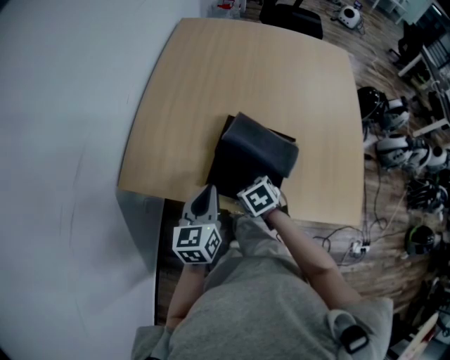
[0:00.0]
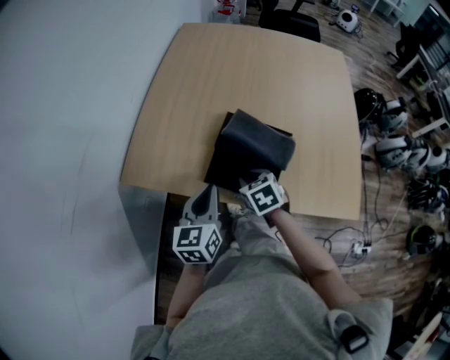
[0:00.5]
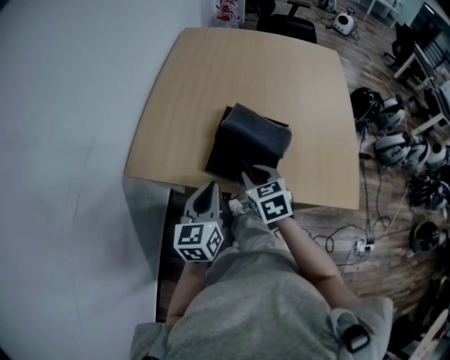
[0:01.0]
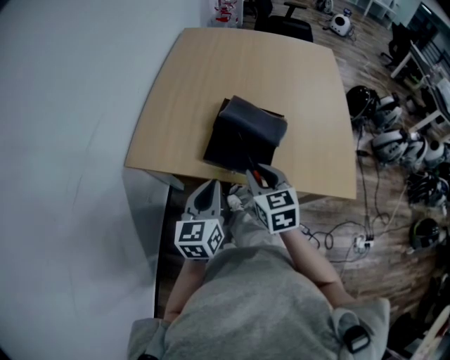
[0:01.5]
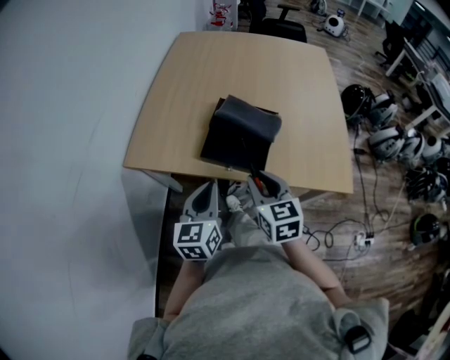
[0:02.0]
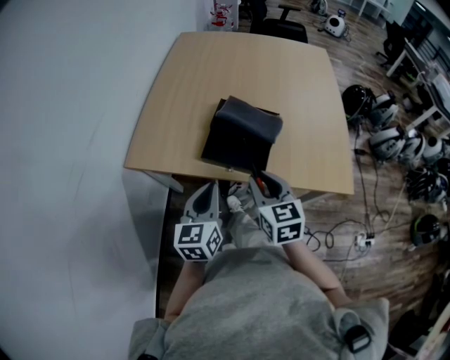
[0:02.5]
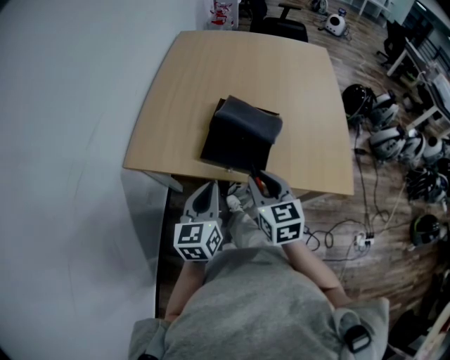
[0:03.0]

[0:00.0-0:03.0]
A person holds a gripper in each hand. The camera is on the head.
0:00.0 to 0:01.5: The right gripper goes some 20 cm upward and backward, and points its fingers about 30 degrees further upward. Meanwhile the left gripper is displaced backward by approximately 10 cm.
0:01.5 to 0:03.0: The grippers stay close to where they were, moving slightly.

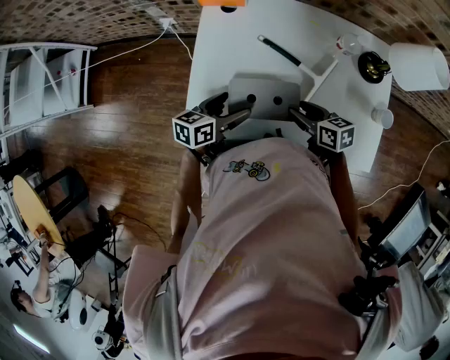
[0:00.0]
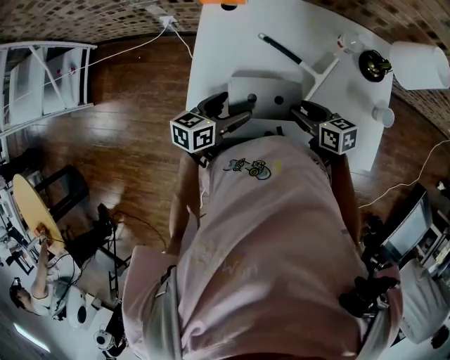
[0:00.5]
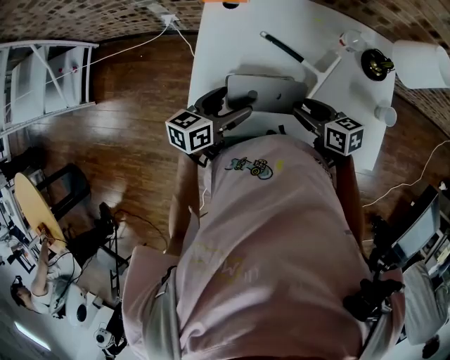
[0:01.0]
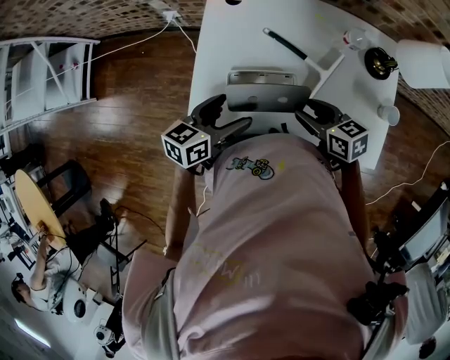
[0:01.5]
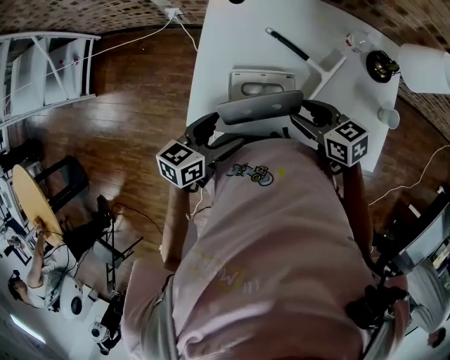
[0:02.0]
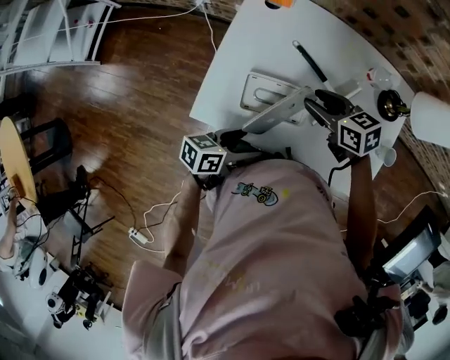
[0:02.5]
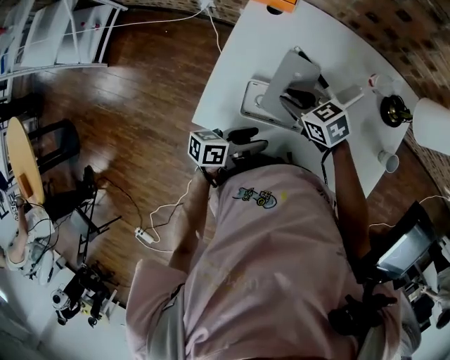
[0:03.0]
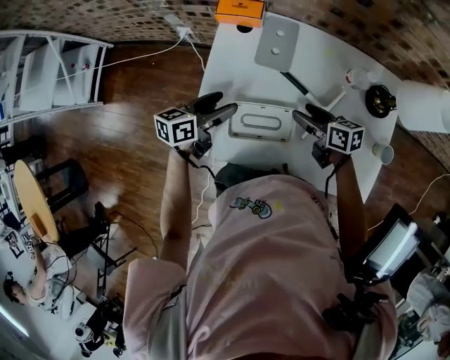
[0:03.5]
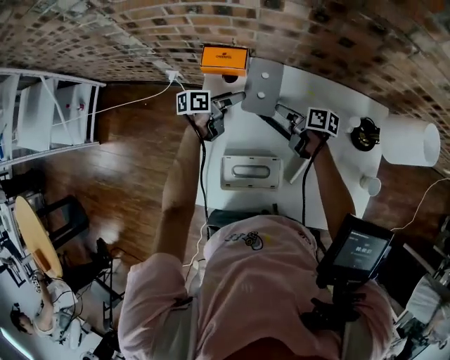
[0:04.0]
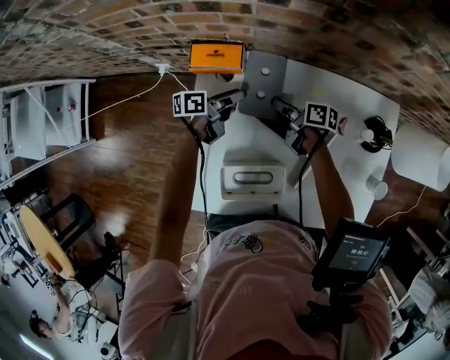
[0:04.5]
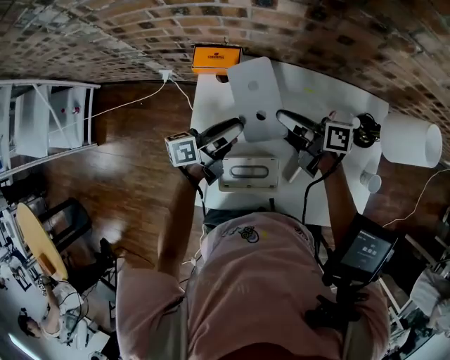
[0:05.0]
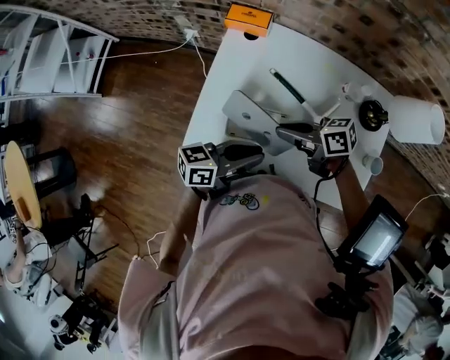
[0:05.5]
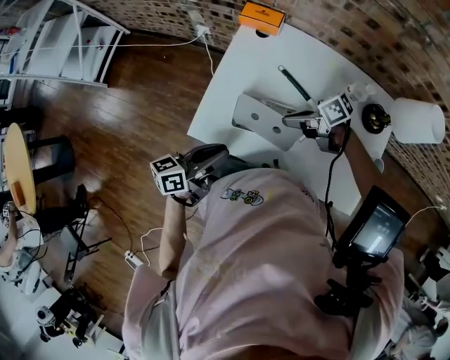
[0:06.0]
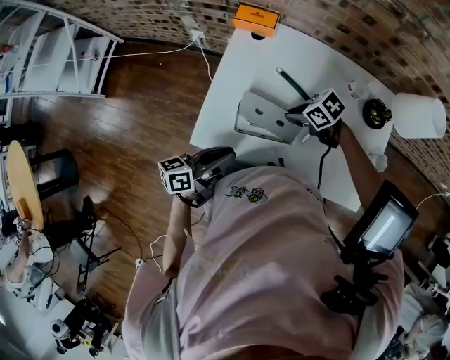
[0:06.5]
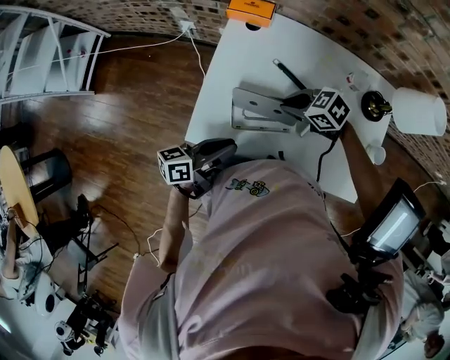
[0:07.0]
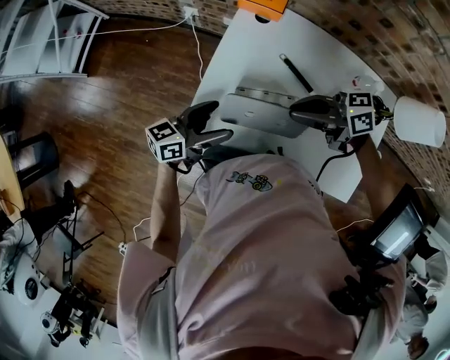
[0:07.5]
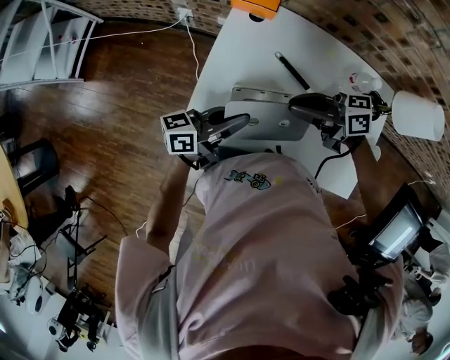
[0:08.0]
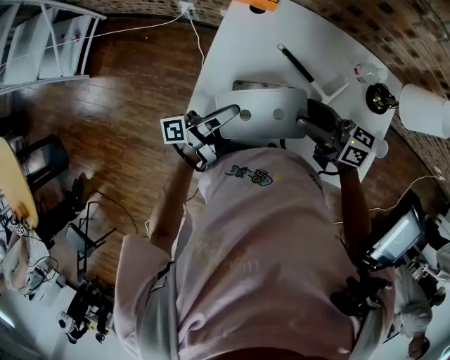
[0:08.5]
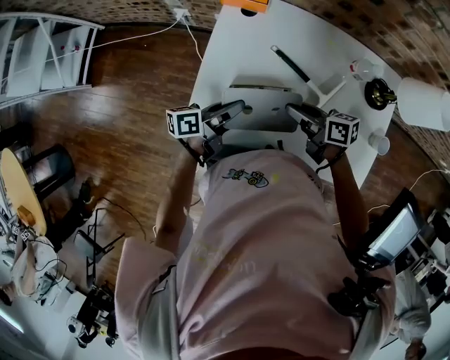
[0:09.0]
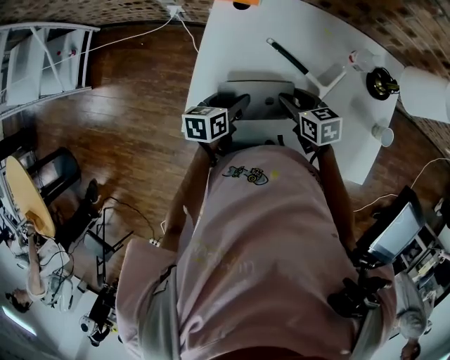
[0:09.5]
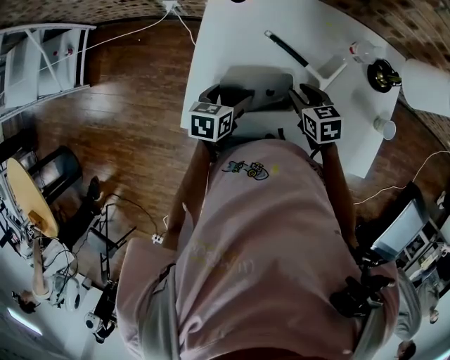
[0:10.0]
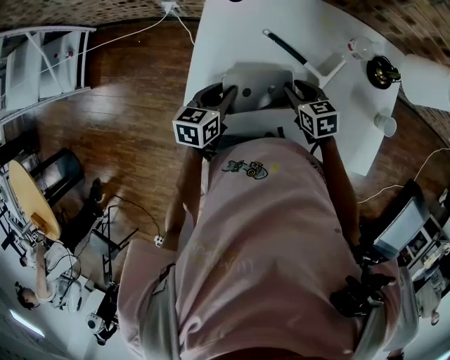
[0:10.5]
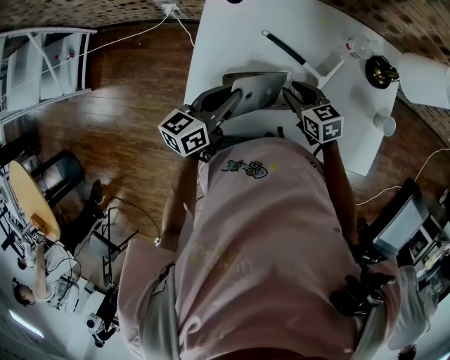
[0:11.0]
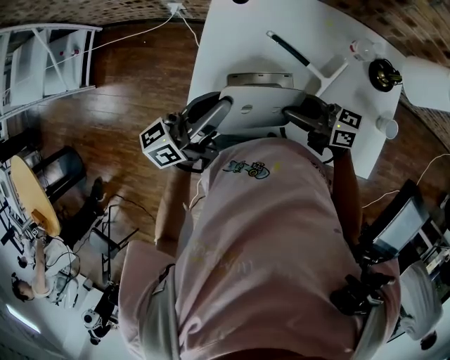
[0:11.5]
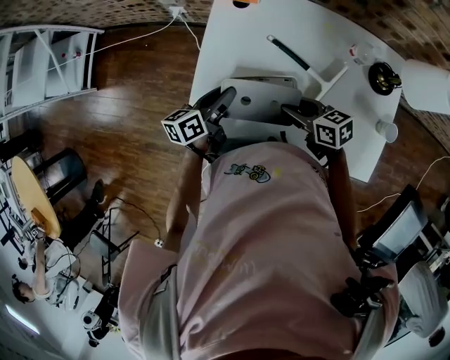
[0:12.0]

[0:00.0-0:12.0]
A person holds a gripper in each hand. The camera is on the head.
0:00.0 to 0:02.0: The right gripper heads upward, covering about 5 cm. The left gripper goes approximately 10 cm backward and upward.
0:02.0 to 0:04.0: The right gripper changes place by approximately 30 cm, and twists approximately 40 degrees clockwise, seen from behind; the left gripper changes place by about 40 cm, and rotates approximately 30 degrees.
0:04.0 to 0:06.0: The left gripper ends up about 40 cm from where it was, swivels about 20 degrees, and closes its fingers. Meanwhile the right gripper shifts by about 25 cm, rotates about 60 degrees, and closes up.
0:06.0 to 0:08.0: The right gripper heads upward, covering roughly 10 cm, and rotates roughly 20 degrees. The left gripper changes place by approximately 10 cm, and opens, then closes once more.
0:08.0 to 0:10.0: The grippers both shift downward by some 15 cm. The left gripper tilts its fingers some 50 degrees downward, and opens. The right gripper points its fingers some 40 degrees further downward.
0:10.0 to 0:12.0: The right gripper reaches about 10 cm upward, then returns, and turns by approximately 30 degrees, while the left gripper reaches roughly 20 cm upward, then returns, swivels some 30 degrees, and closes up.

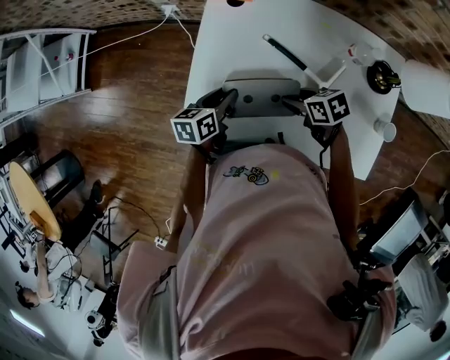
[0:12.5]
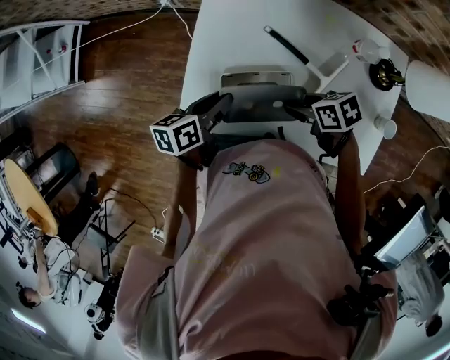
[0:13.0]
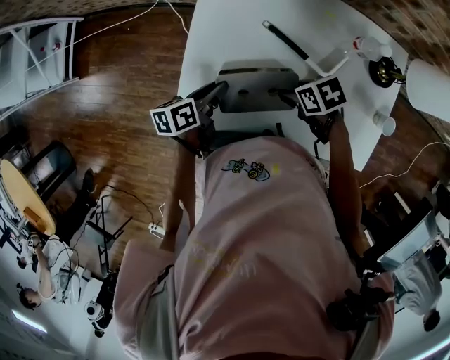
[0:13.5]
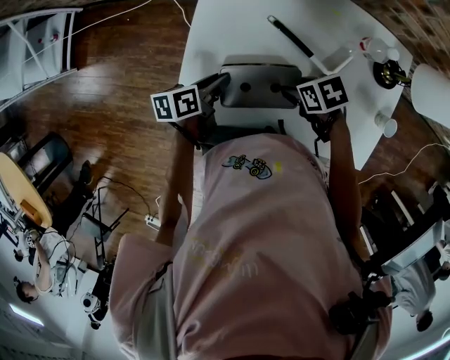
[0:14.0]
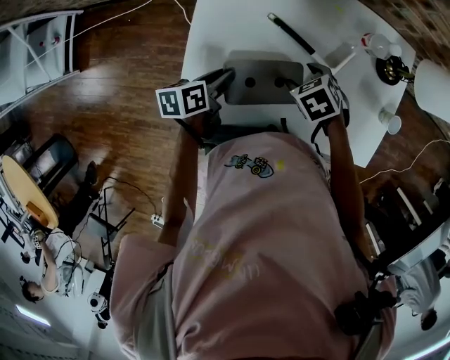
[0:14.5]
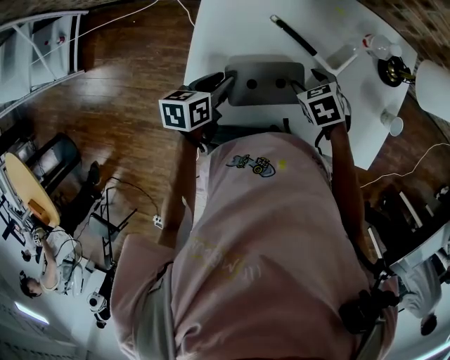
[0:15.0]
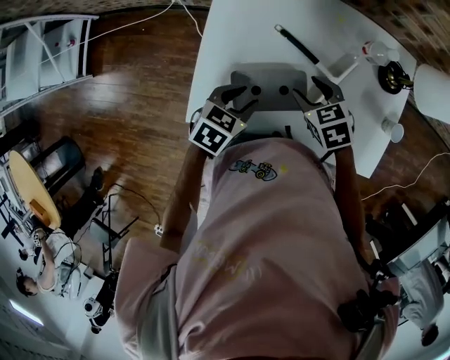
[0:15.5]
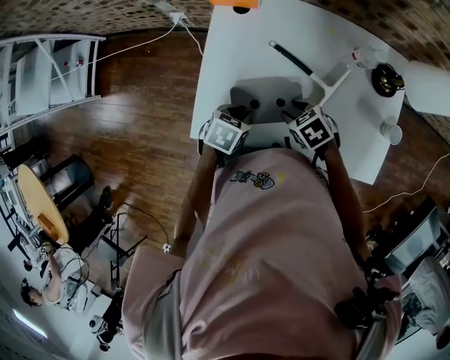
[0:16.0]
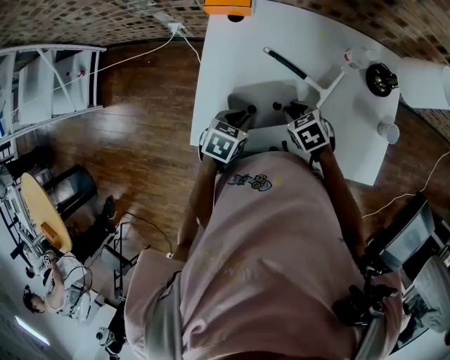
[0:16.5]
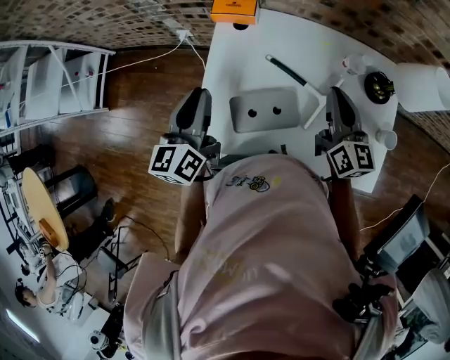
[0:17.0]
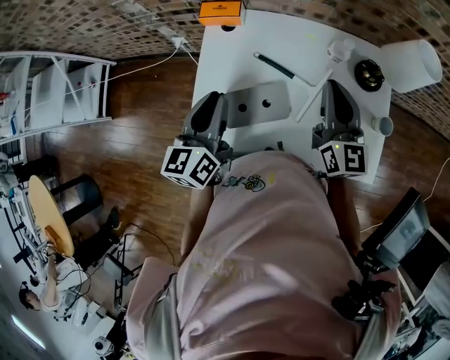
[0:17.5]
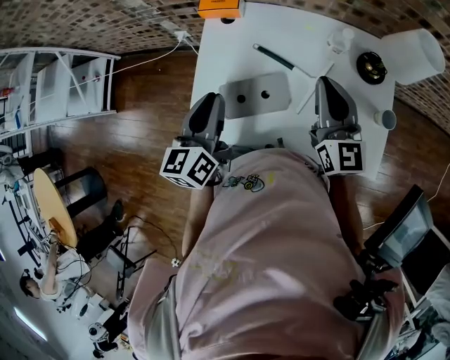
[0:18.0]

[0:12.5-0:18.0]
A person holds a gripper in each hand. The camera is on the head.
0:12.5 to 0:14.5: The right gripper changes its angle by roughly 40 degrees, and opens its fingers.
0:14.5 to 0:16.0: The left gripper moves roughly 5 cm, and turns by about 40 degrees; the right gripper shifts by approximately 5 cm, and closes.
0:16.0 to 0:18.0: The right gripper heads upward and to the right, covering about 25 cm, tips its fingers upward by approximately 70 degrees, and closes up, while the left gripper travels upward by about 25 cm, and points its fingers roughly 50 degrees further upward.

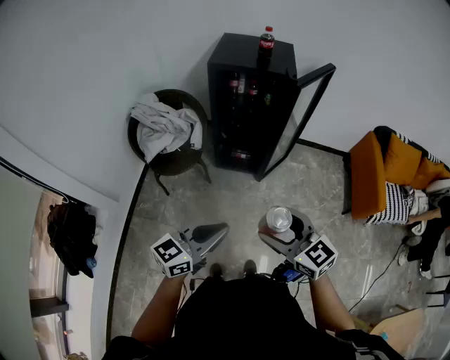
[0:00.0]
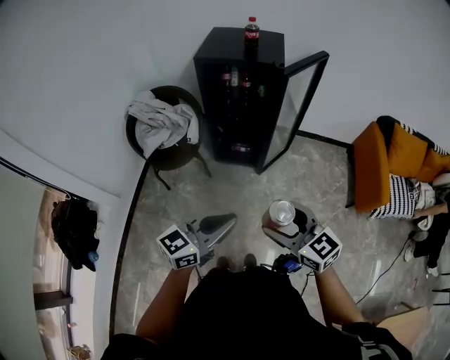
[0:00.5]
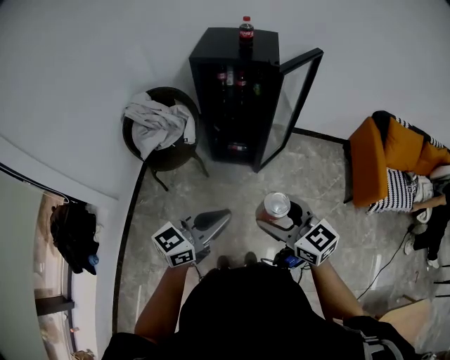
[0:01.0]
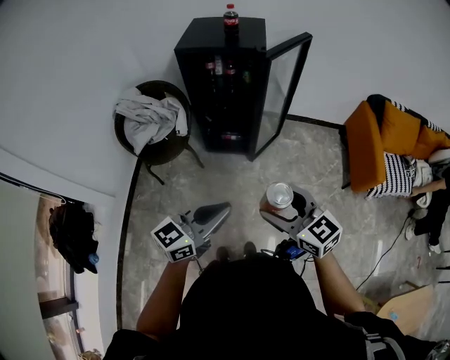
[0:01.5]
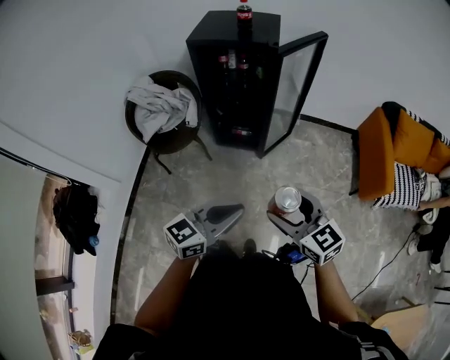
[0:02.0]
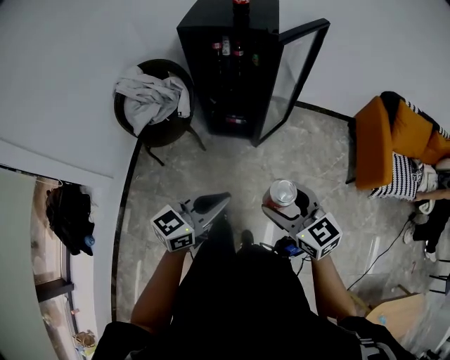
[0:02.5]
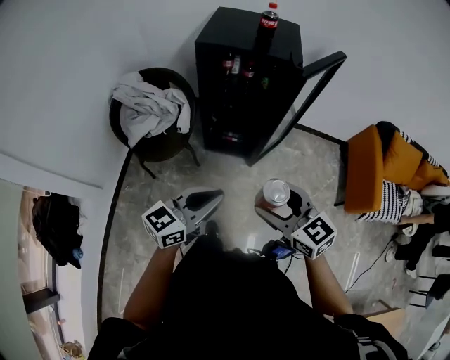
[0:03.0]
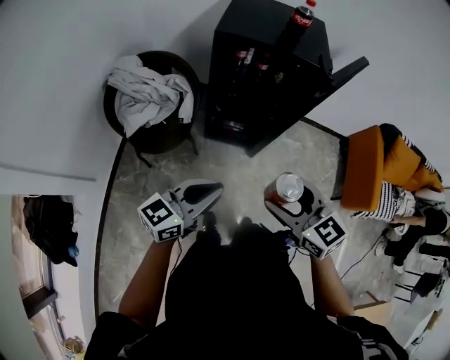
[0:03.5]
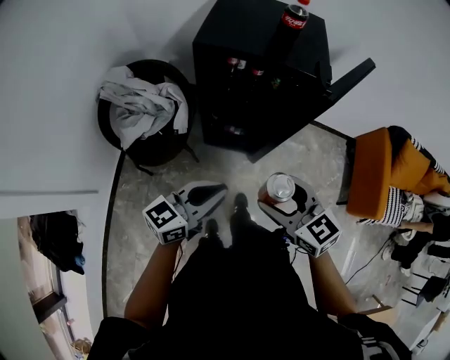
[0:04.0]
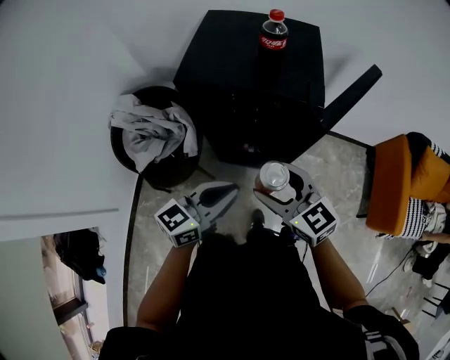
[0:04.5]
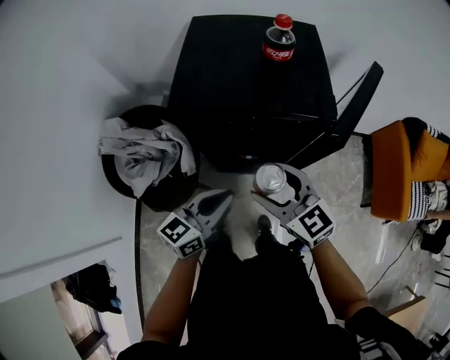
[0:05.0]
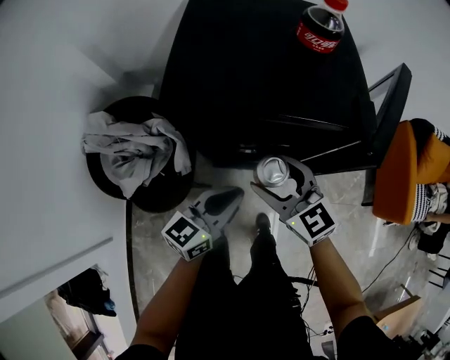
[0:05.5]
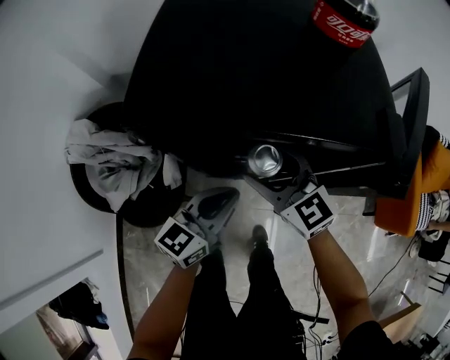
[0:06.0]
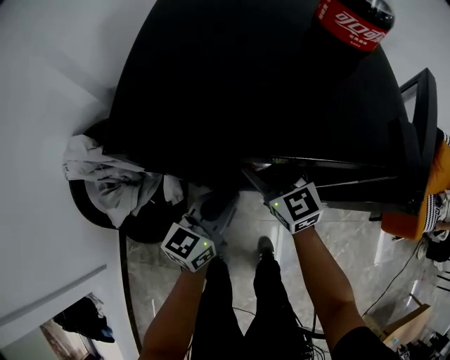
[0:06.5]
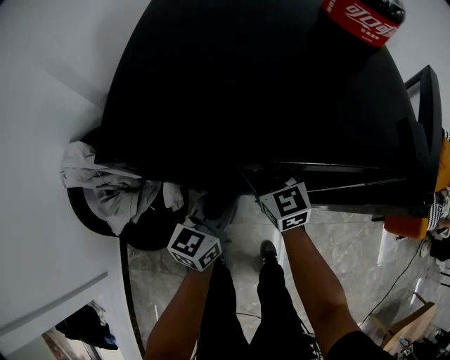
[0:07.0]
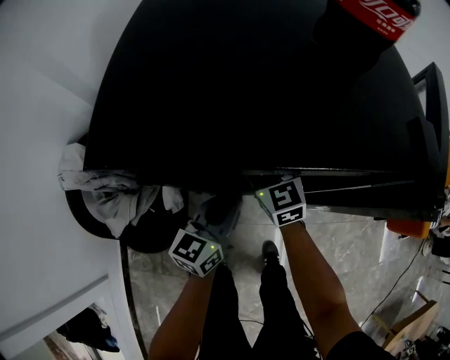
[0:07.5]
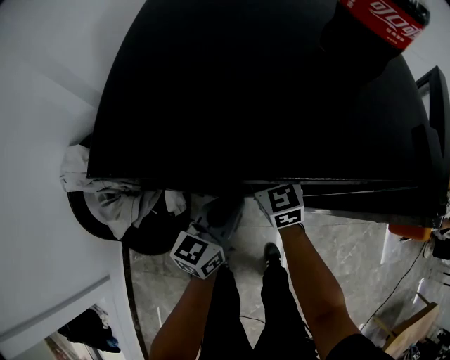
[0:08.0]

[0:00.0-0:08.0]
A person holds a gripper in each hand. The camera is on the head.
0:00.0 to 0:02.0: The two grippers go roughly 15 cm to the right.
0:02.0 to 0:04.0: Both grippers travel together forward and to the left, approximately 30 cm.
0:04.0 to 0:06.0: Both grippers travel together forward and downward, some 30 cm.
0:06.0 to 0:08.0: The left gripper goes roughly 10 cm downward and forward, while the right gripper travels downward and forward by some 15 cm, and turns by approximately 20 degrees.
